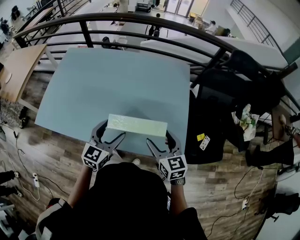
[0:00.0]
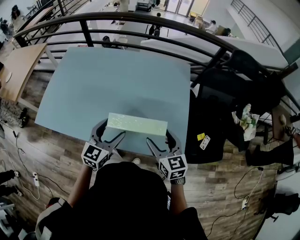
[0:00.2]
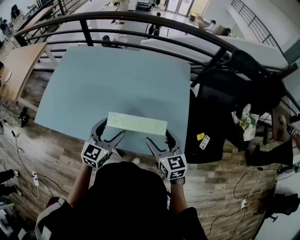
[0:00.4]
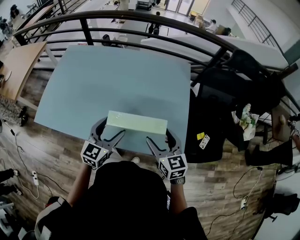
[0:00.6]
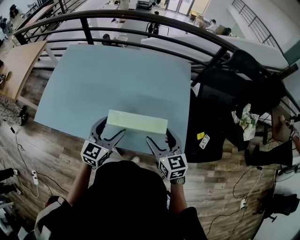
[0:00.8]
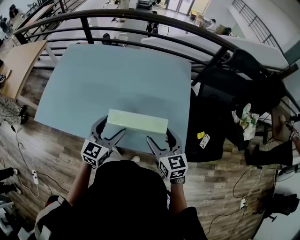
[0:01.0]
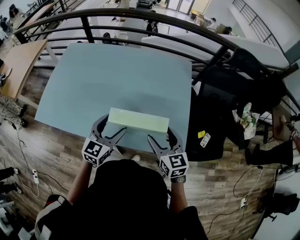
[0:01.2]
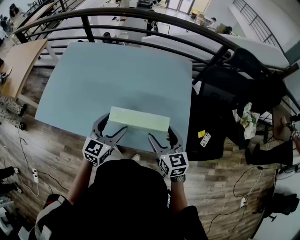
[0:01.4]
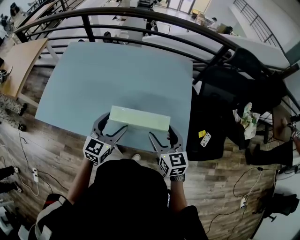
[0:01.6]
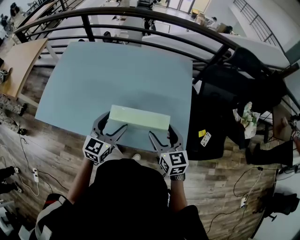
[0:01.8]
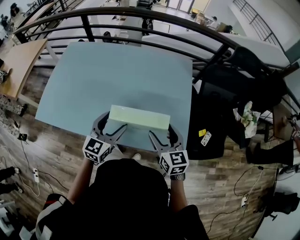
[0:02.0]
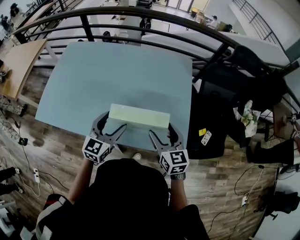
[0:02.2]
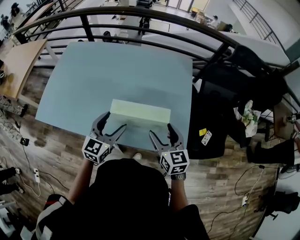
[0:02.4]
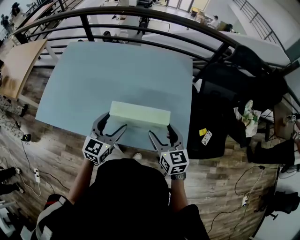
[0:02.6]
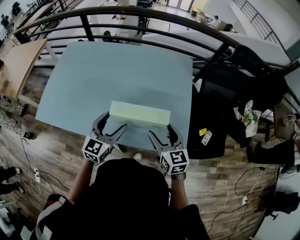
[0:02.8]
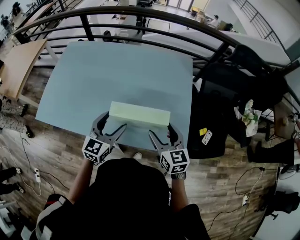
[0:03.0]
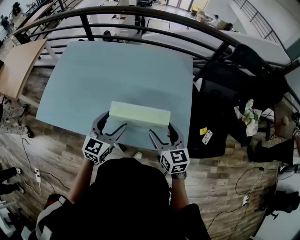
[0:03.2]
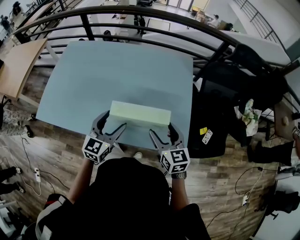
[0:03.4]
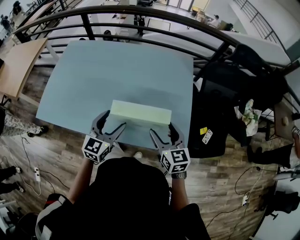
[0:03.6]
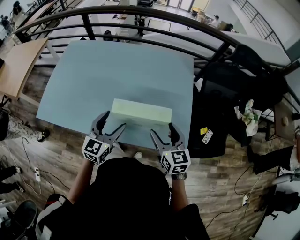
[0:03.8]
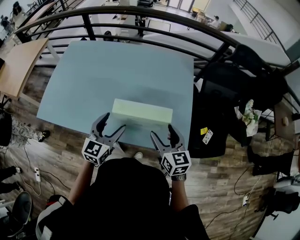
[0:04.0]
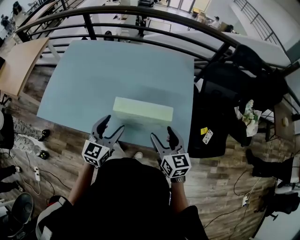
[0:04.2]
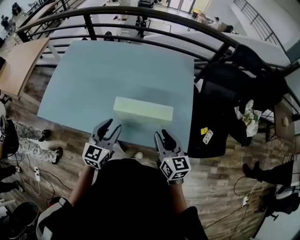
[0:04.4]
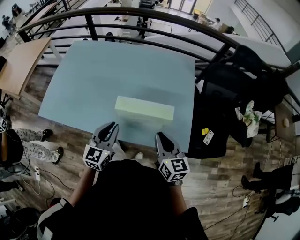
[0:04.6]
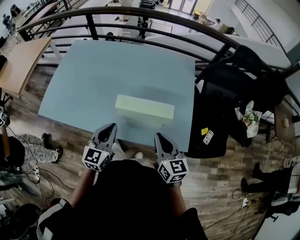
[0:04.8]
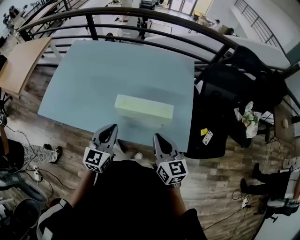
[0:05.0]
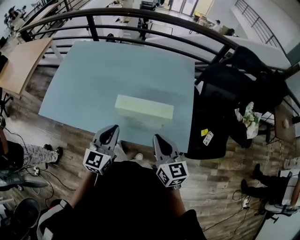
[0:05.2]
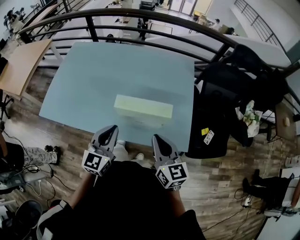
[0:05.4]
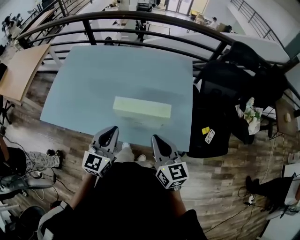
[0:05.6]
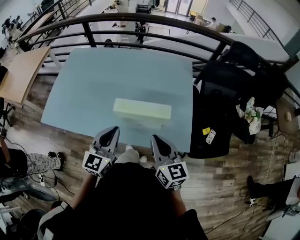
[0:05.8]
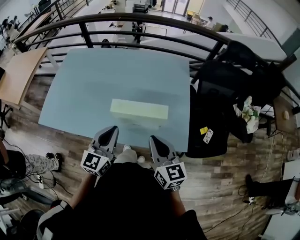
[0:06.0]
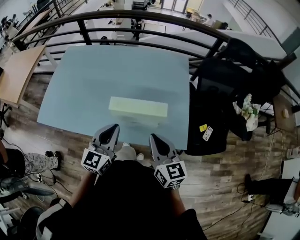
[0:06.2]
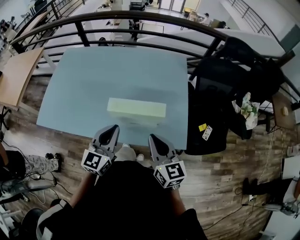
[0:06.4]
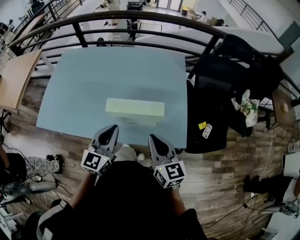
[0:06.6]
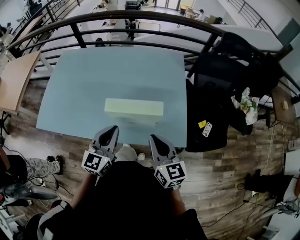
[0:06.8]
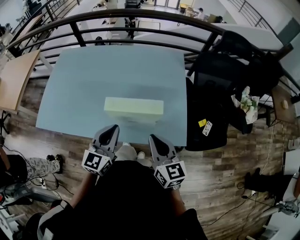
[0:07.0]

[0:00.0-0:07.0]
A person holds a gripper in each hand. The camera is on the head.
0:00.0 to 0:02.8: Both grippers stay put.
0:02.8 to 0:04.2: There are only small adjustments of the grippers.
0:04.2 to 0:05.6: The right gripper moves upward, roughly 5 cm, and closes up. Meanwhile the left gripper shifts by roughly 5 cm, and closes its fingers.
0:05.6 to 0:07.0: There are only small adjustments of the grippers.

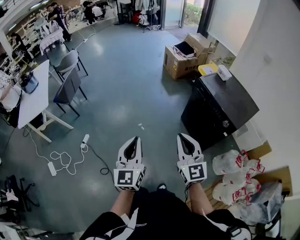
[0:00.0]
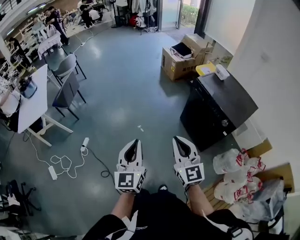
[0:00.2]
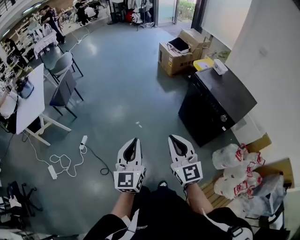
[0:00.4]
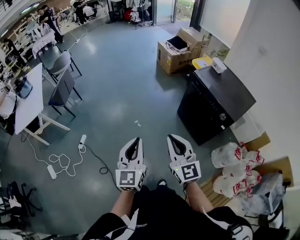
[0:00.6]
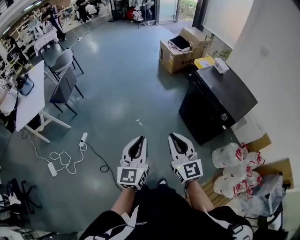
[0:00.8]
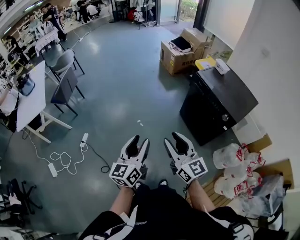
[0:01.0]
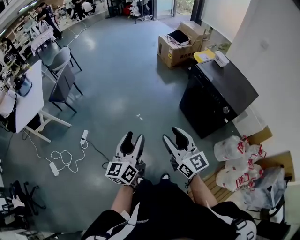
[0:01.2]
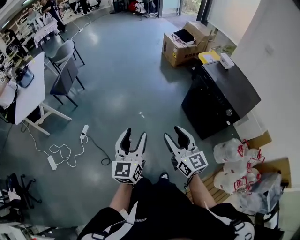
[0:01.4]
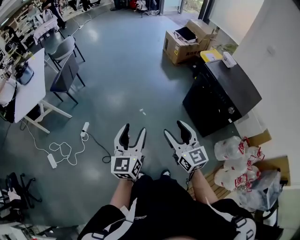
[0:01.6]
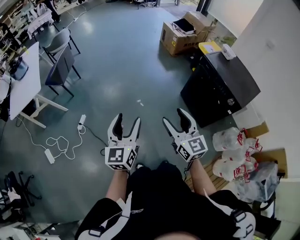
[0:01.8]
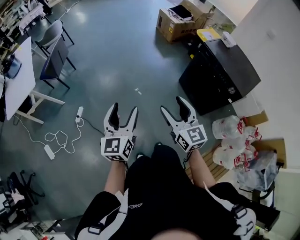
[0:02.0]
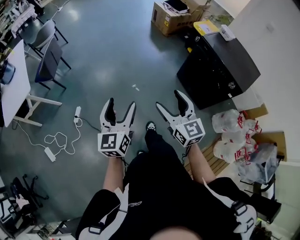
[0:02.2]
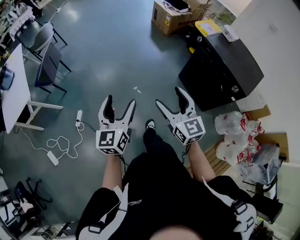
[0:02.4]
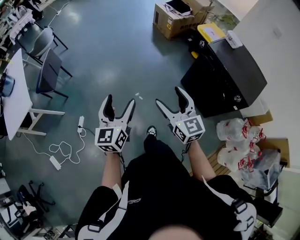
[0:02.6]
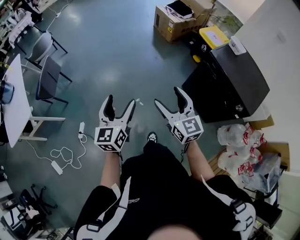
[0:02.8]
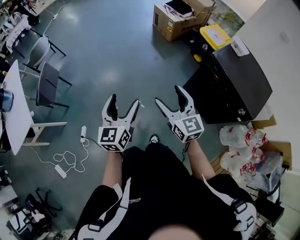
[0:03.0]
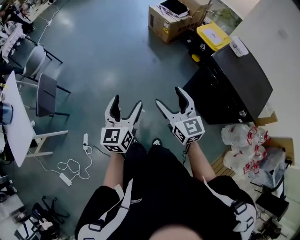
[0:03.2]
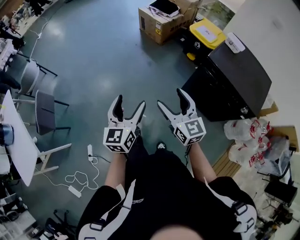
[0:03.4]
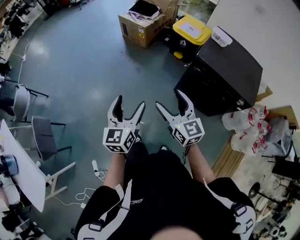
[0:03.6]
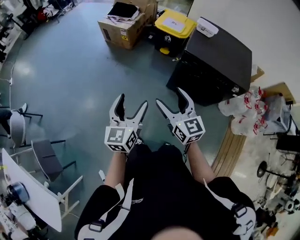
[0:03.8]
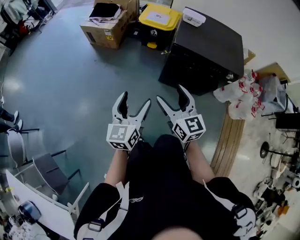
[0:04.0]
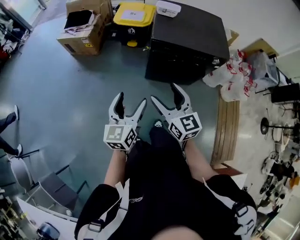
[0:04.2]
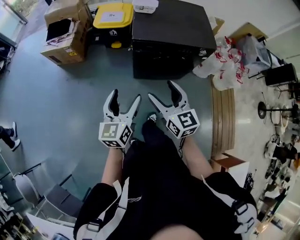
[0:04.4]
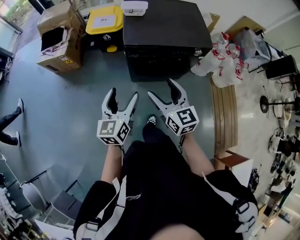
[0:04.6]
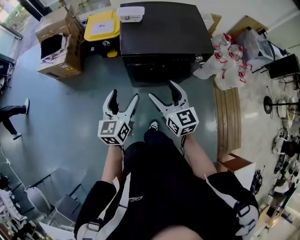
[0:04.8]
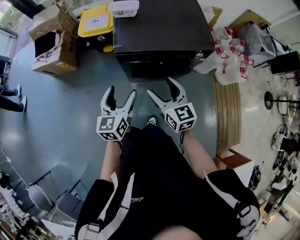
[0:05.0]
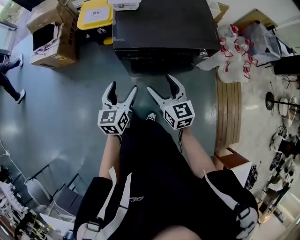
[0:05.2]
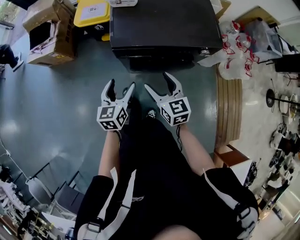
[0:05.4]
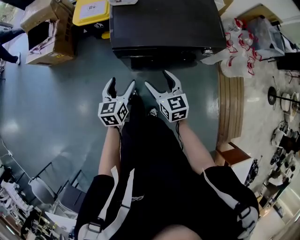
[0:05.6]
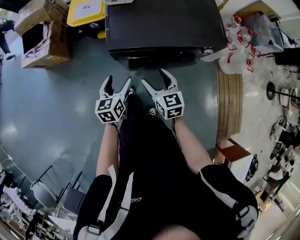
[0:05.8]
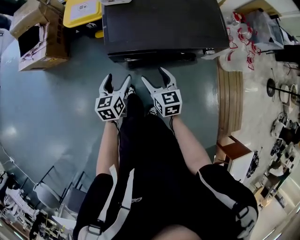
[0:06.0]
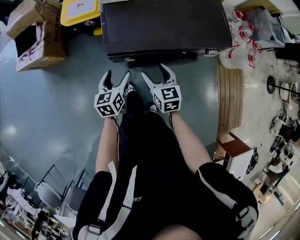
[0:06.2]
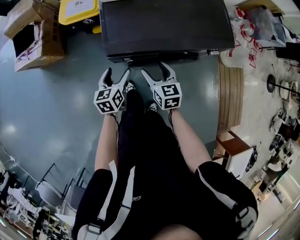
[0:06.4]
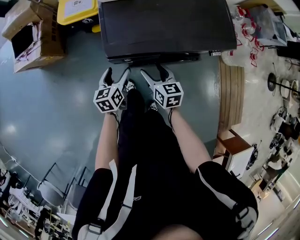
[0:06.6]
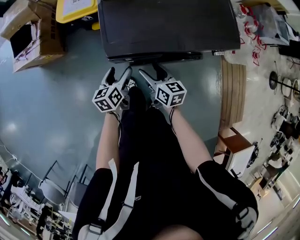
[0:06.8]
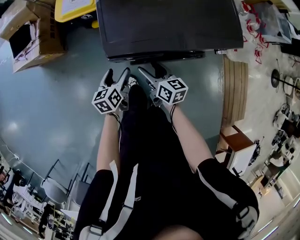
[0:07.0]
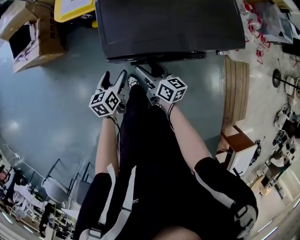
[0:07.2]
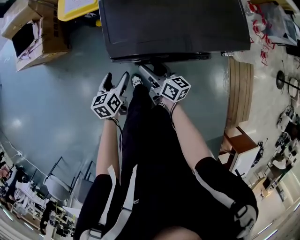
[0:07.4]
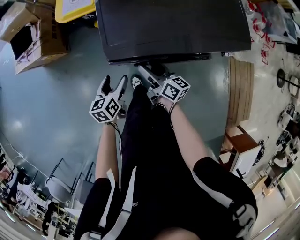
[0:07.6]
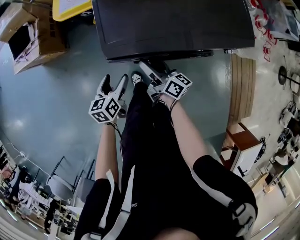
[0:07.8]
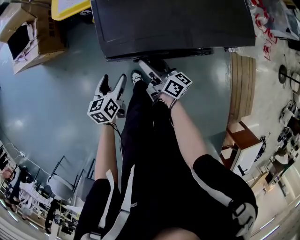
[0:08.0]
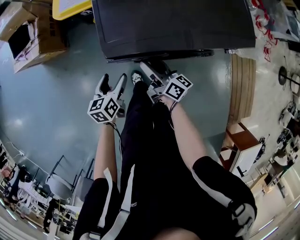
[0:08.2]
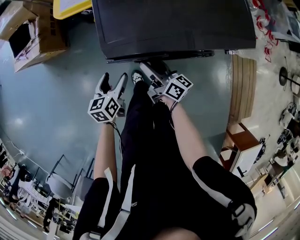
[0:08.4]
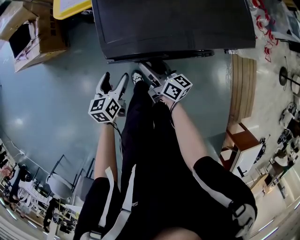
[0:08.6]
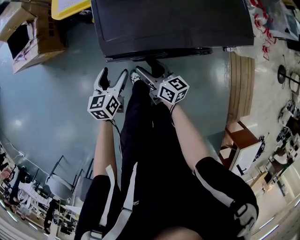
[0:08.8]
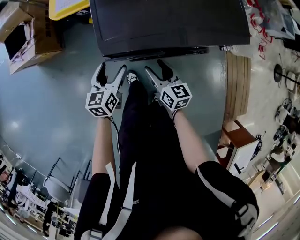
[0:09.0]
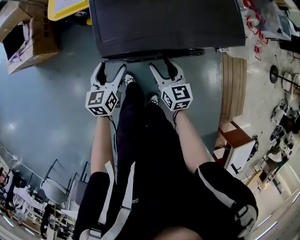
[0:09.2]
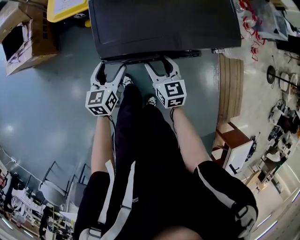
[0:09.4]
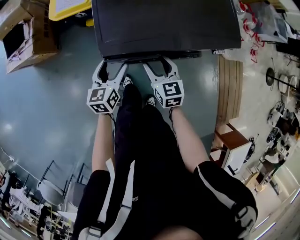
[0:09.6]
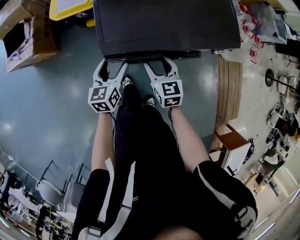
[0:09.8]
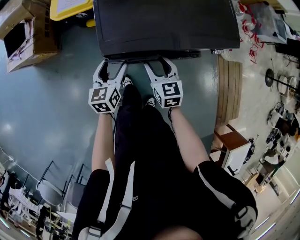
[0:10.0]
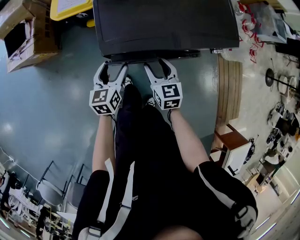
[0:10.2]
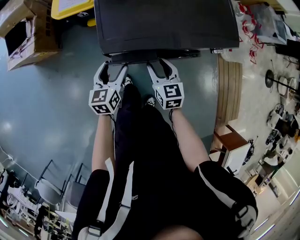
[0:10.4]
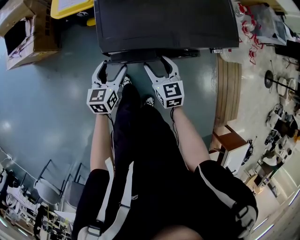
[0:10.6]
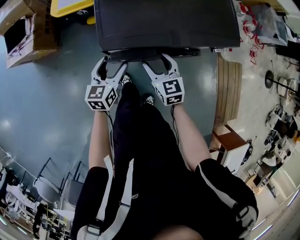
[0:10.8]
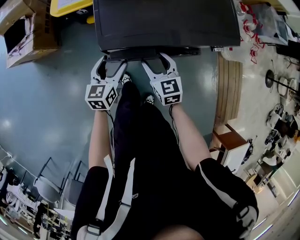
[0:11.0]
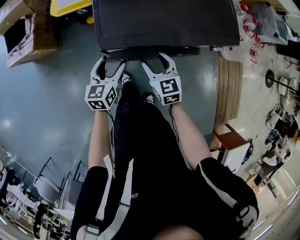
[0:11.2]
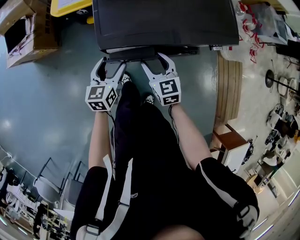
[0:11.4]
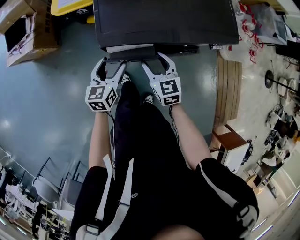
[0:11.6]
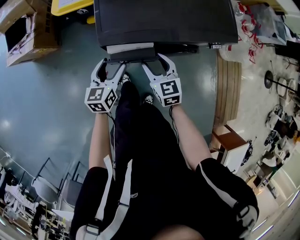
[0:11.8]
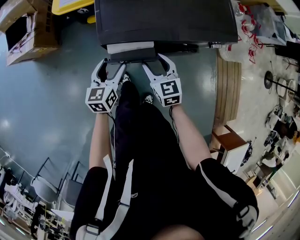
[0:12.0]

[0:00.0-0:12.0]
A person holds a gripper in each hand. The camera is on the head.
0:00.0 to 0:01.6: The left gripper travels to the left by approximately 10 cm, and opens its fingers; the right gripper travels to the left and downward by about 10 cm, and opens.
0:01.6 to 0:03.0: Both grippers move forward, roughly 40 cm.
0:03.0 to 0:04.4: The right gripper changes place by some 20 cm, and changes its angle by approximately 60 degrees. Meanwhile the left gripper moves approximately 35 cm, and swivels roughly 60 degrees.
0:04.4 to 0:06.0: Both grippers travel together forward and downward, about 35 cm. The left gripper rotates about 20 degrees. Meanwhile the right gripper swivels approximately 20 degrees.
0:06.0 to 0:07.6: The right gripper heads forward and downward, covering some 10 cm, and rotates around the line of its fingers by approximately 40 degrees, clockwise from behind; the left gripper is displaced downward by some 10 cm.
0:07.6 to 0:09.0: The right gripper moves roughly 5 cm, and turns by roughly 30 degrees.
0:09.0 to 0:10.4: The right gripper turns by some 20 degrees.
0:10.4 to 0:12.0: The grippers move only a little.

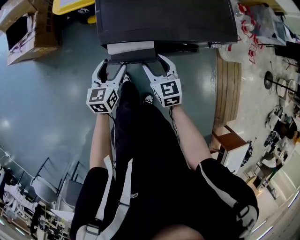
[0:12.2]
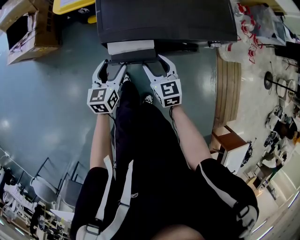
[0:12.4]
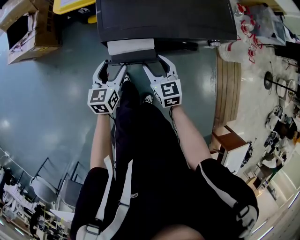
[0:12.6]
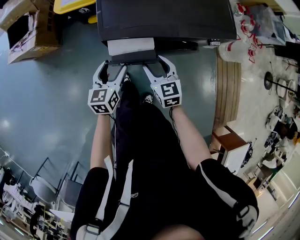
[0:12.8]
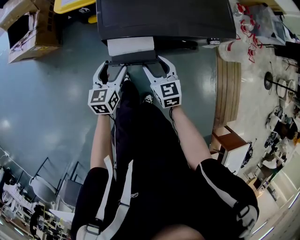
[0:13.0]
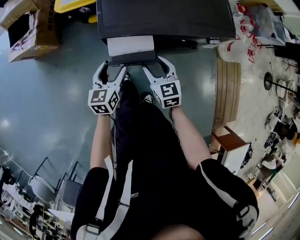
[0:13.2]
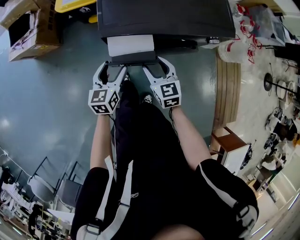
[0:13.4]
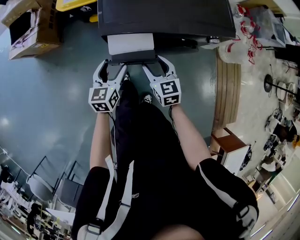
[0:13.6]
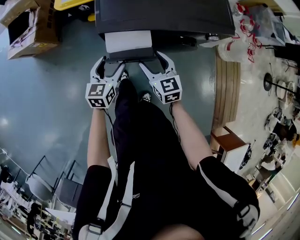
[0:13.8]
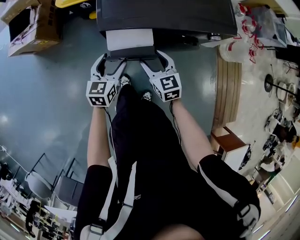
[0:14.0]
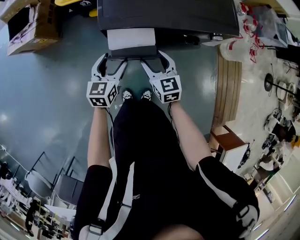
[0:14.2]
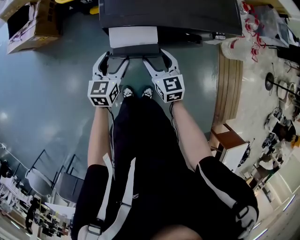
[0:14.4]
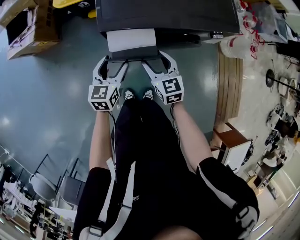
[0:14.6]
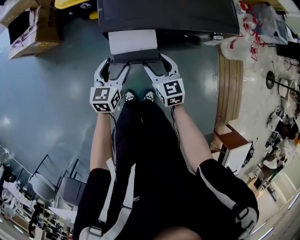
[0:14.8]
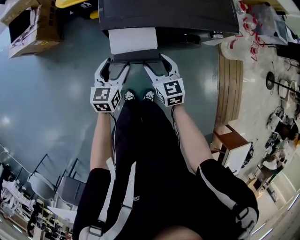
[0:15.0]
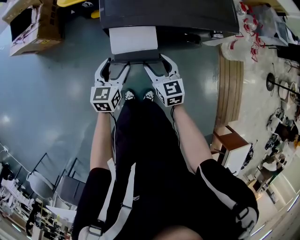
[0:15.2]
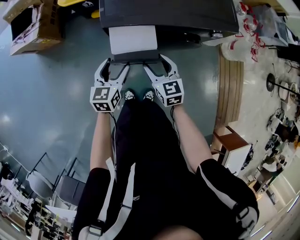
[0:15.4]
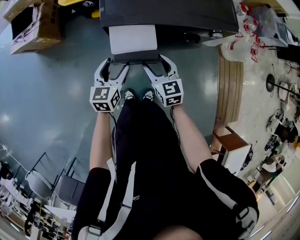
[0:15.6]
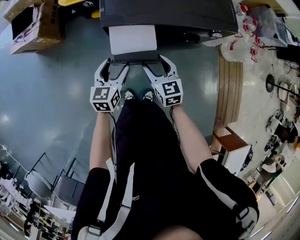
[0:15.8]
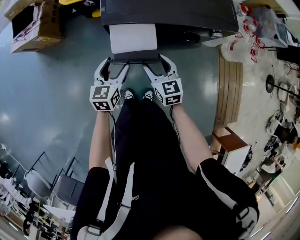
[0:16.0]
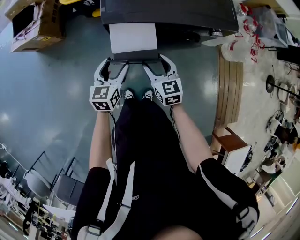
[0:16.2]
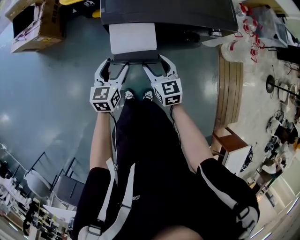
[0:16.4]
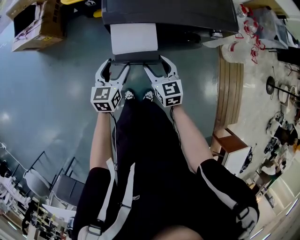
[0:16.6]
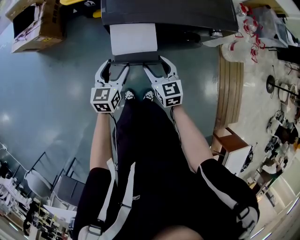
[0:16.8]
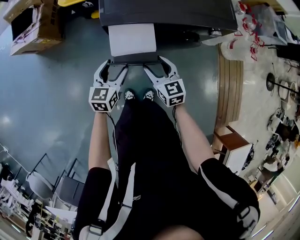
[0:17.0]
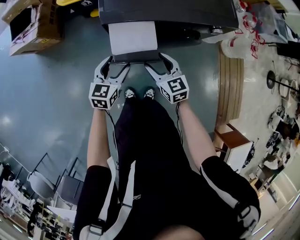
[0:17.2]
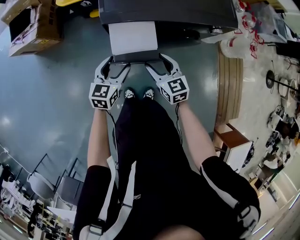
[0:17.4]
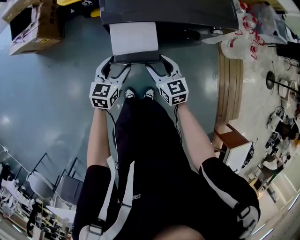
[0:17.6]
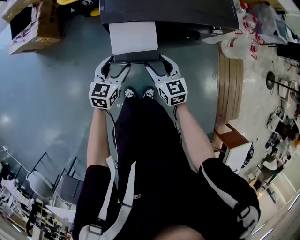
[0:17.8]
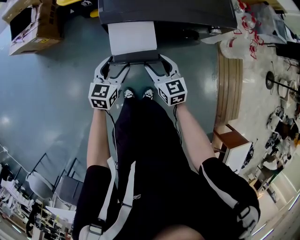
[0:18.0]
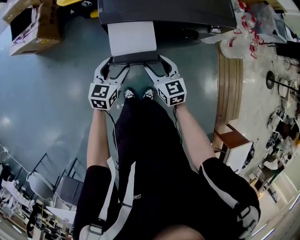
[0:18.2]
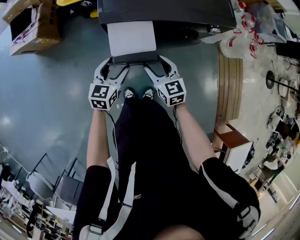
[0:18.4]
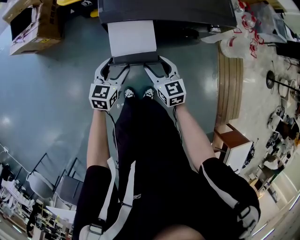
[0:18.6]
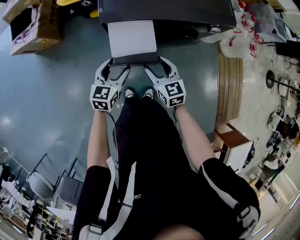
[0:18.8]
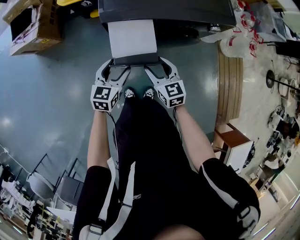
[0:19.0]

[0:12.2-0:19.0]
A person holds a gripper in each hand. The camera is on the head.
0:12.2 to 0:15.0: The grippers stay close to where they were, moving slightly.
0:15.0 to 0:19.0: There are only small adjustments of the grippers.
